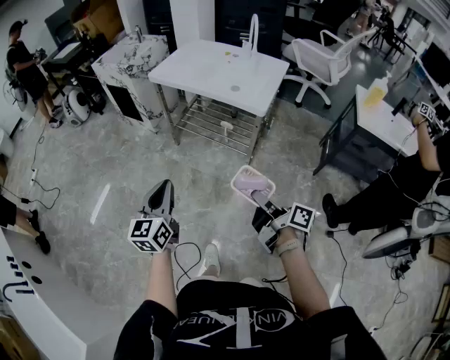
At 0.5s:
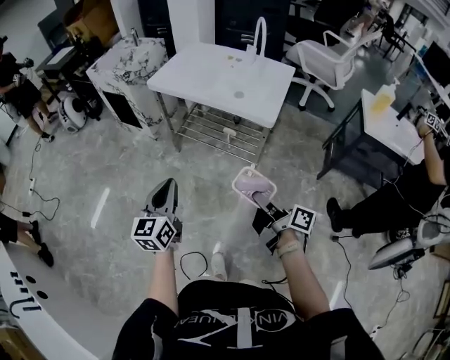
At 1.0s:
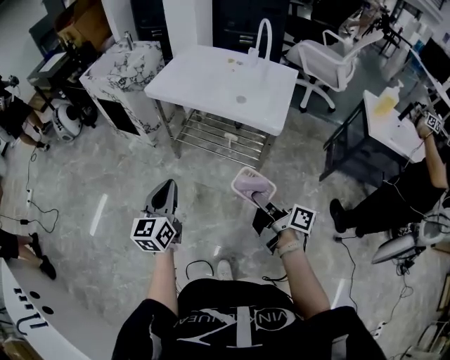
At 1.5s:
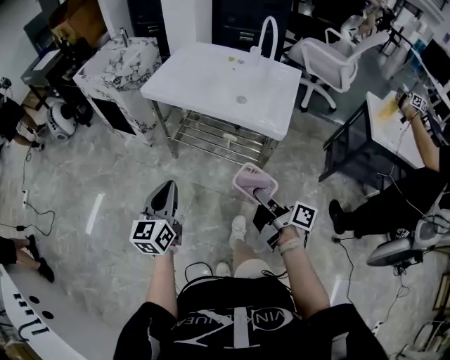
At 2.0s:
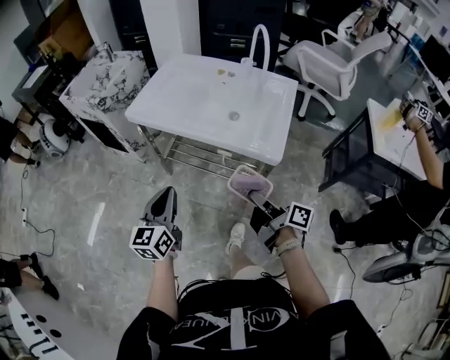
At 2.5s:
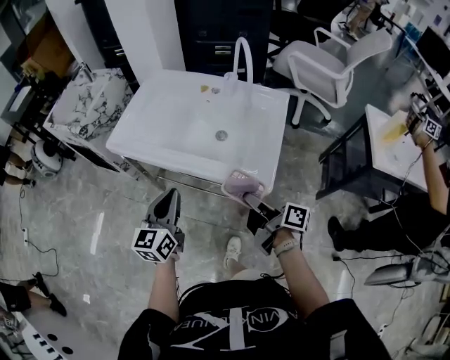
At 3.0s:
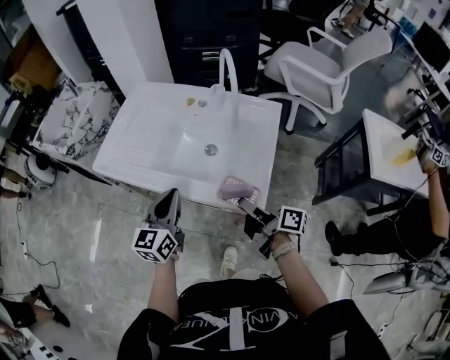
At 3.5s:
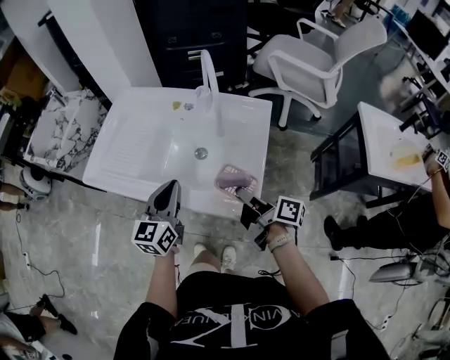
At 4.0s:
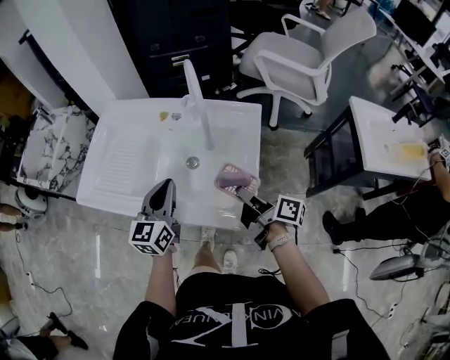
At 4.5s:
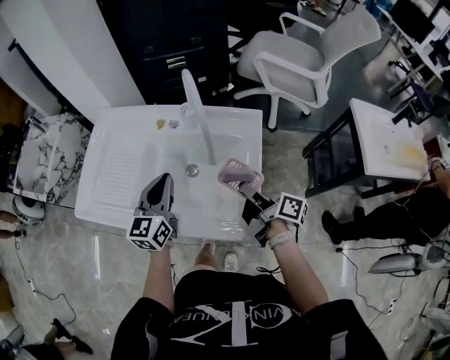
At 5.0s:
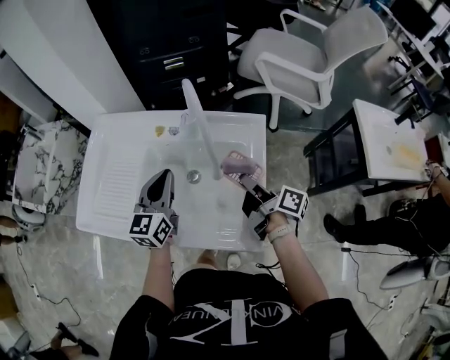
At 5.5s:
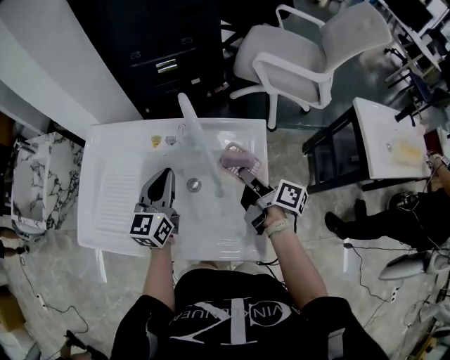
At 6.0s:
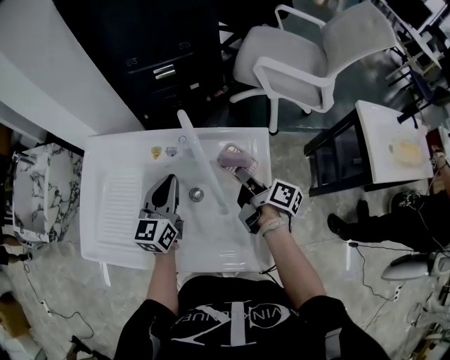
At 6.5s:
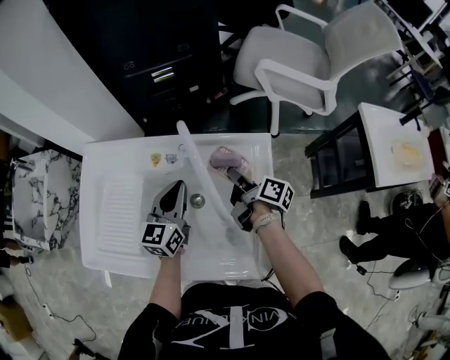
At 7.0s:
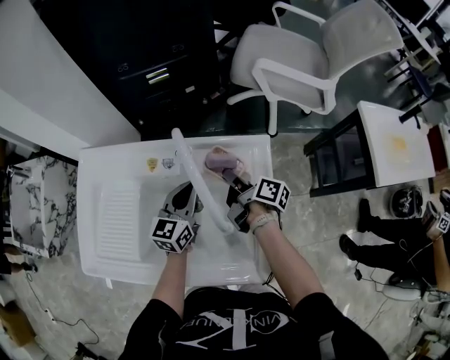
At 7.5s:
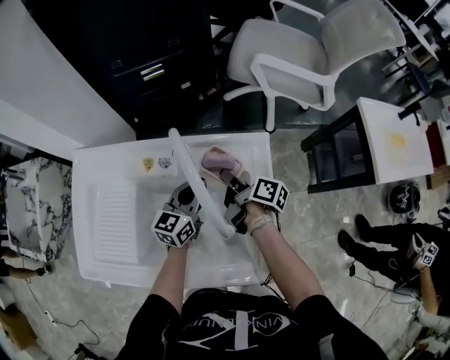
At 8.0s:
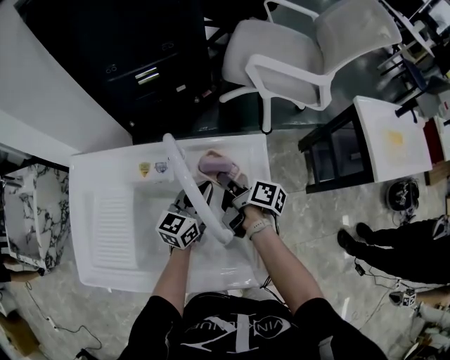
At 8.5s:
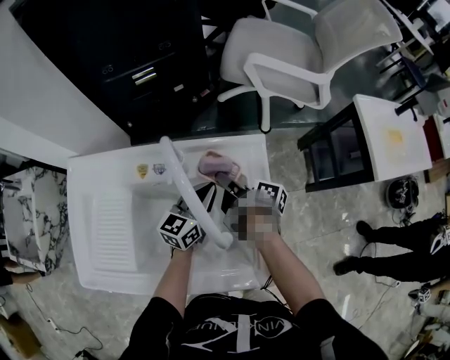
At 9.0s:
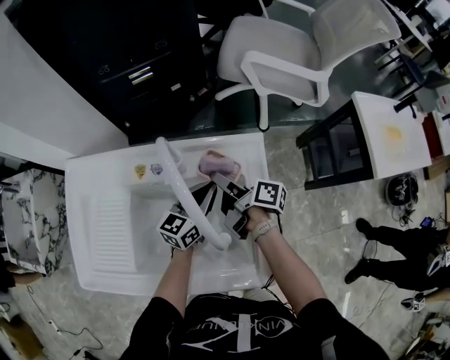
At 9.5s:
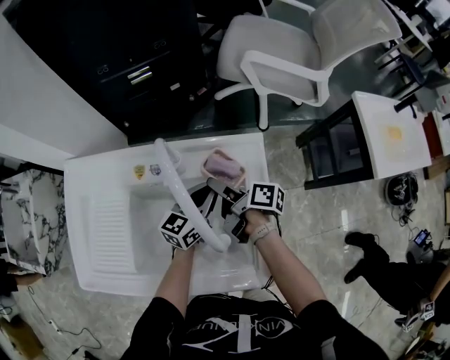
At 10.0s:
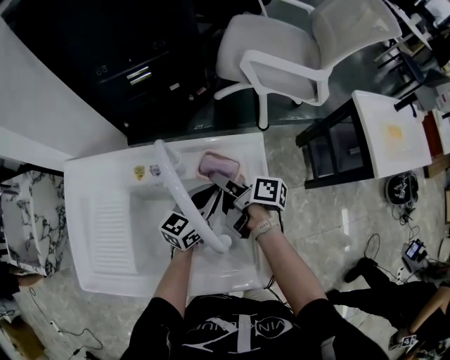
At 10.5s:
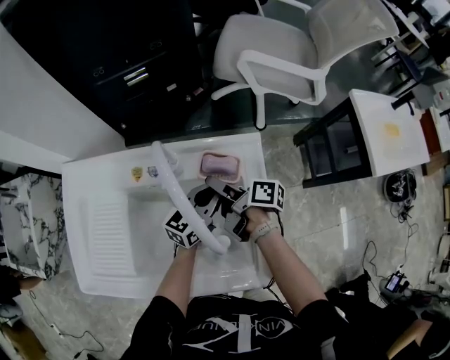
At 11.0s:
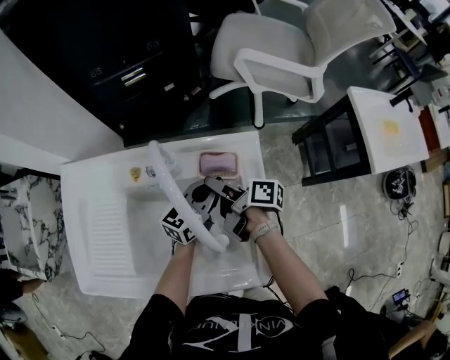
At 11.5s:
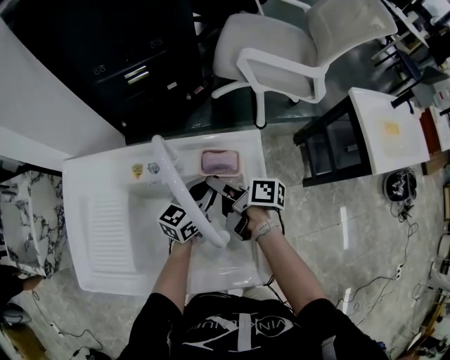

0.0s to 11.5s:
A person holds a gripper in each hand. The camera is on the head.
0.0s to 2.0s: The left gripper changes place by approximately 30 cm.
2.0s to 4.0s: The left gripper moves approximately 35 cm.
4.0s to 6.0s: The left gripper shifts by approximately 20 cm.
6.0s to 7.5s: The left gripper goes about 10 cm downward.
7.5s to 9.5s: The left gripper changes place by roughly 5 cm.

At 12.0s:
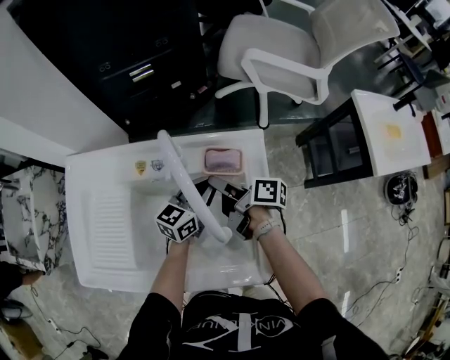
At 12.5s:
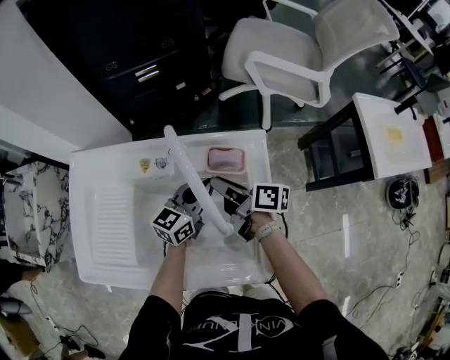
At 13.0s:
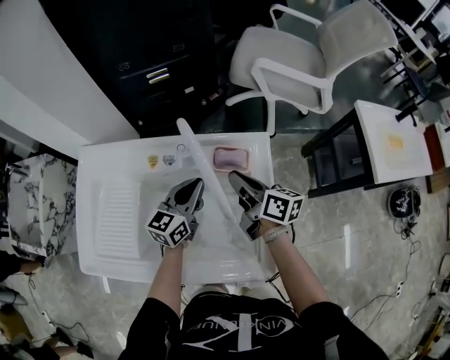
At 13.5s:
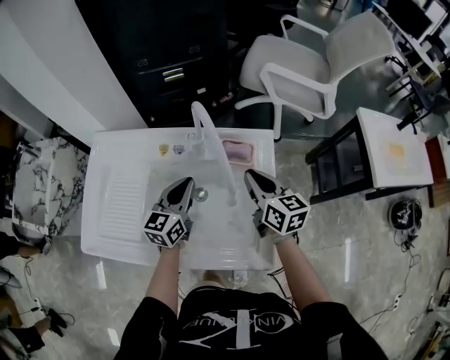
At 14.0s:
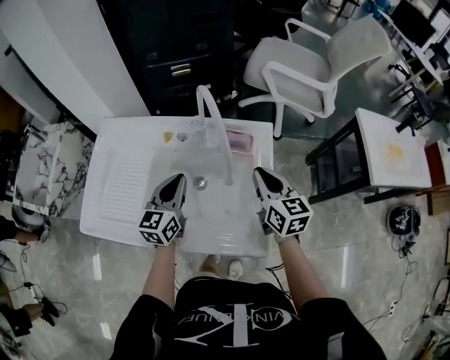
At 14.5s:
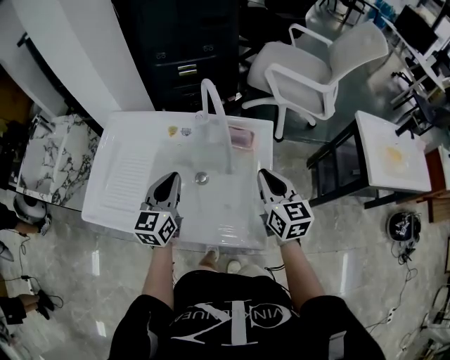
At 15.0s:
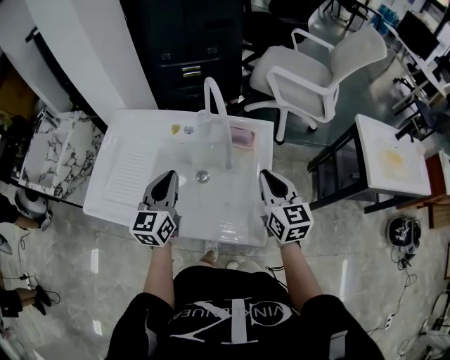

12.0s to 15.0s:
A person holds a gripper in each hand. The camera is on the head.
12.0s to 13.5s: The left gripper moves about 15 cm, and swivels about 20 degrees.
13.5s to 15.0s: The left gripper moves some 15 cm.

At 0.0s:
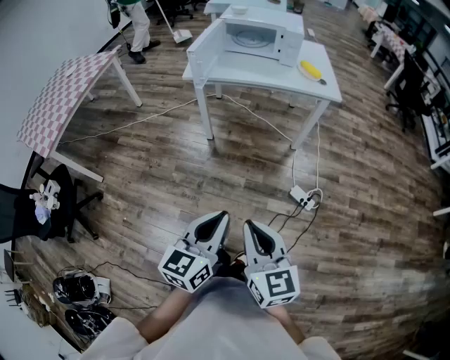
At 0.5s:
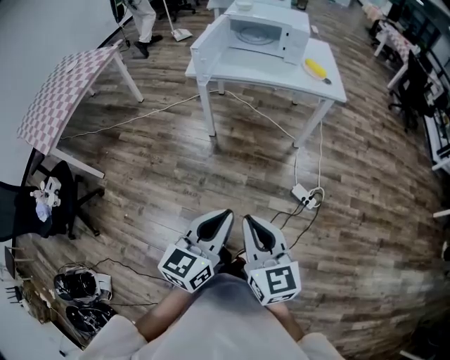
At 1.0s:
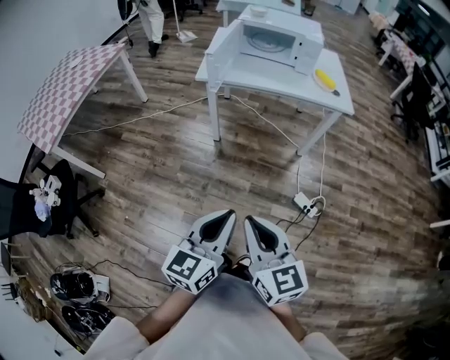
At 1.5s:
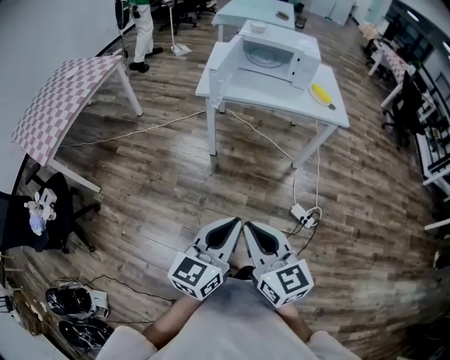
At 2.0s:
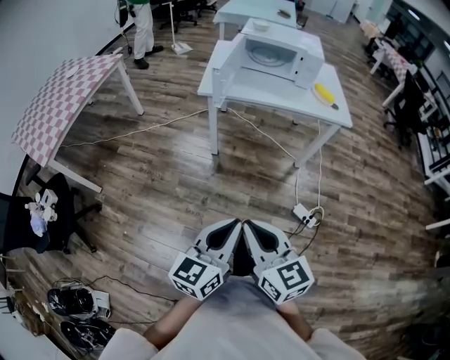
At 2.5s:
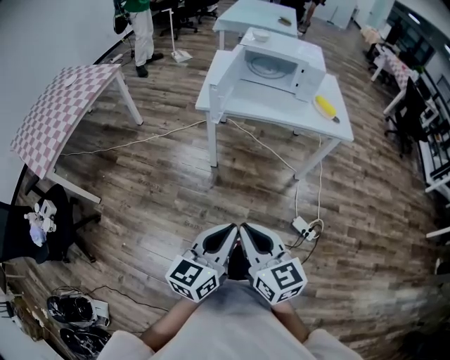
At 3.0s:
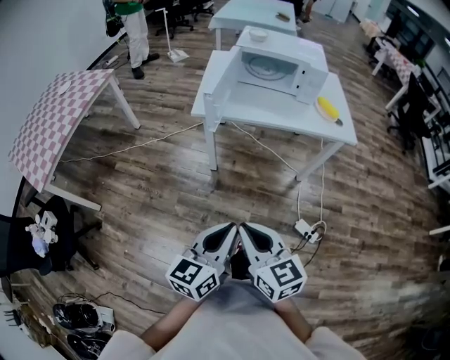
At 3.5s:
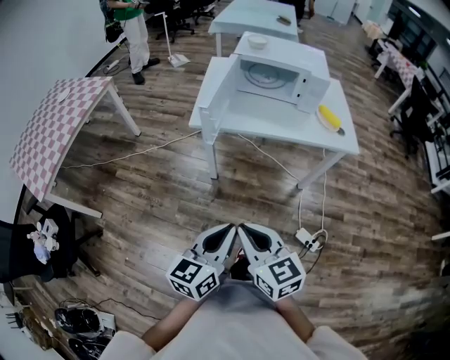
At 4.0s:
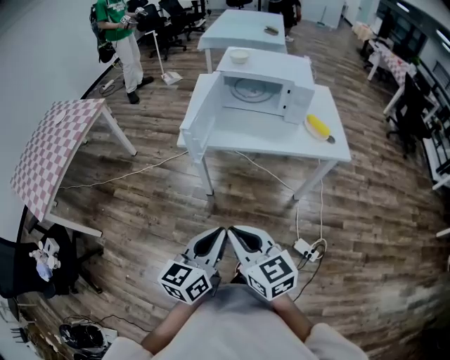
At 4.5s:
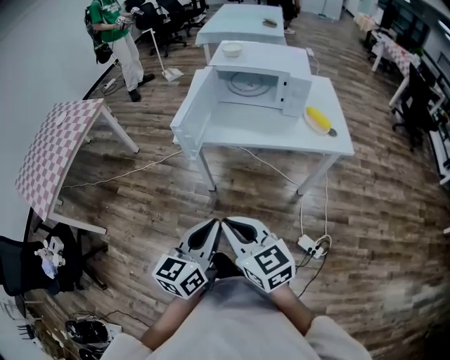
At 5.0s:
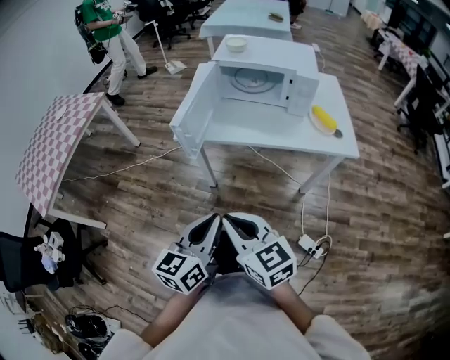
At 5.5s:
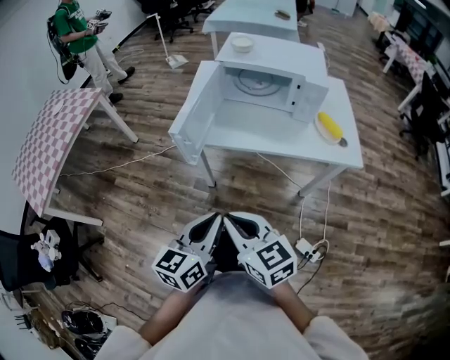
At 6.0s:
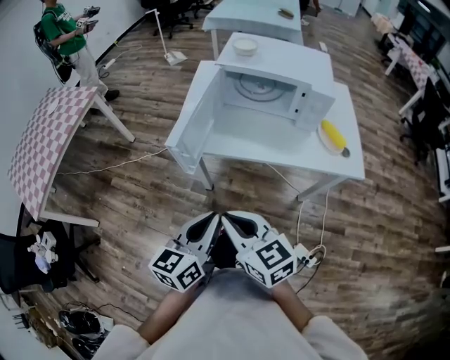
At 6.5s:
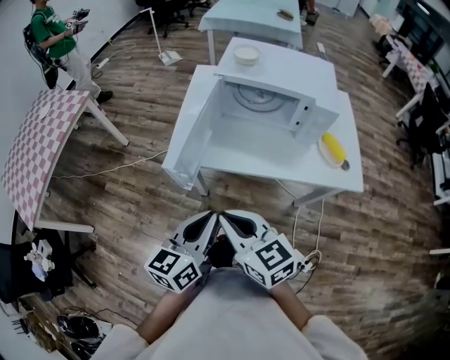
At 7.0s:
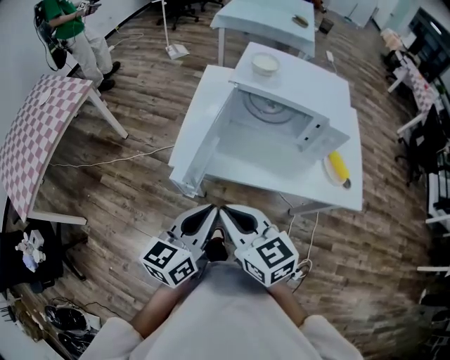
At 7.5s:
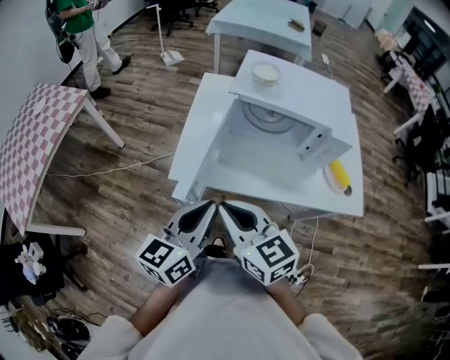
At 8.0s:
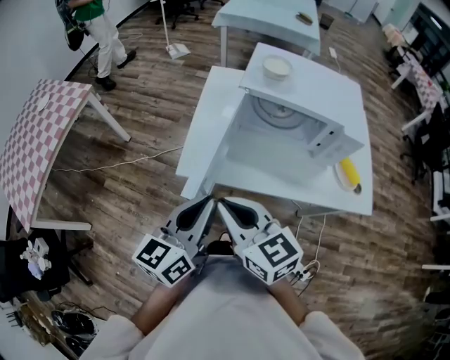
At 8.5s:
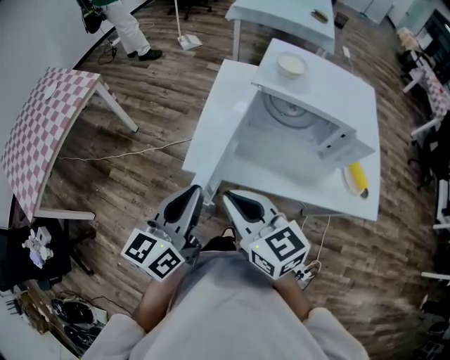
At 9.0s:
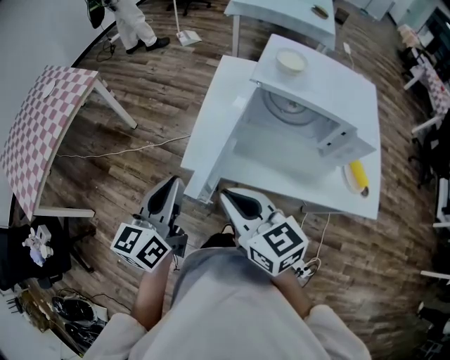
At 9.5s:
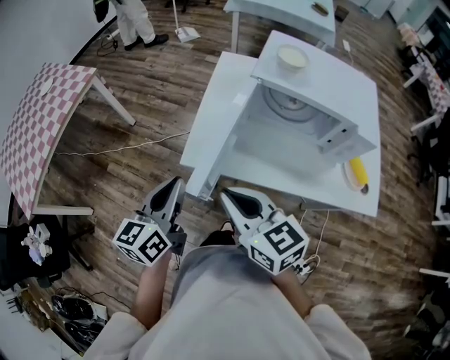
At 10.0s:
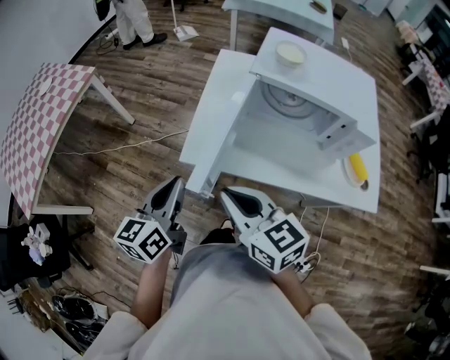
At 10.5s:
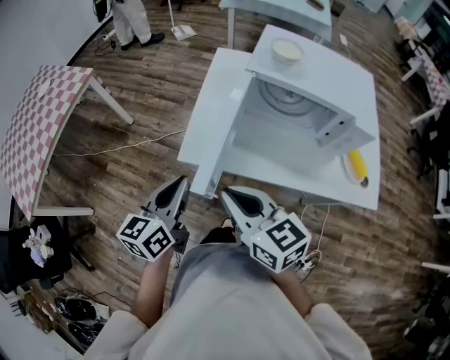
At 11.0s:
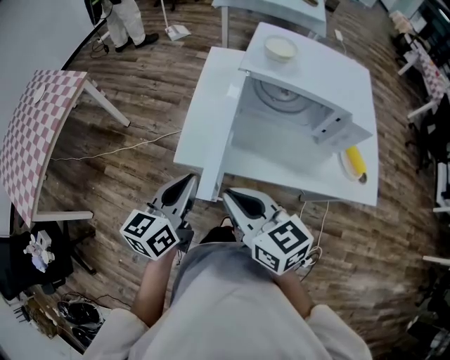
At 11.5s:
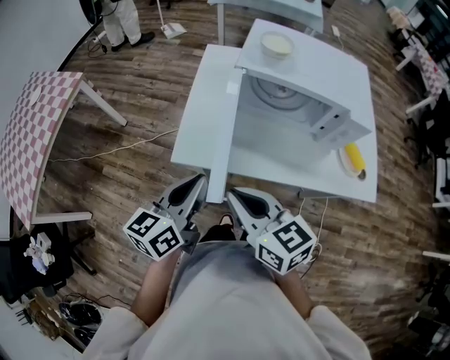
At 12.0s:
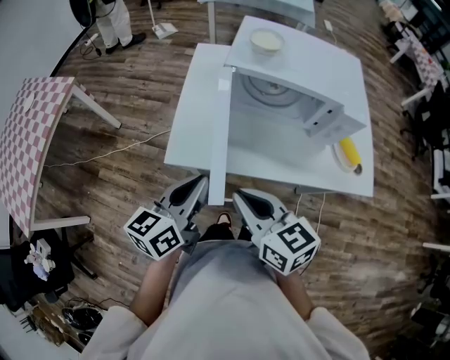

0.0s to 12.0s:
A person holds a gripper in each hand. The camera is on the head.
0.0s to 2.0s: Both grippers move to the left and forward, some 10 cm.
2.0s to 4.0s: The two grippers go approximately 20 cm forward.
4.0s to 6.0s: The grippers both shift forward by approximately 15 cm.
6.0s to 8.0s: The two grippers go some 20 cm forward.
8.0s to 10.0s: The left gripper moves to the left, downward and forward, roughly 10 cm.
10.0s to 12.0s: The right gripper heads to the right, covering approximately 5 cm, while the left gripper heads to the right, covering some 10 cm.

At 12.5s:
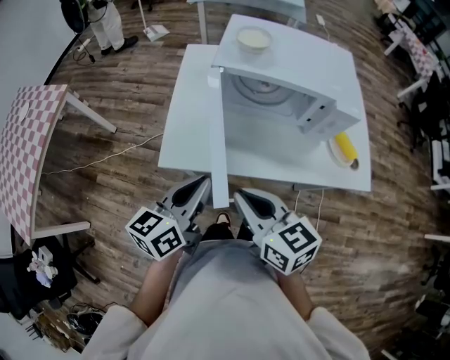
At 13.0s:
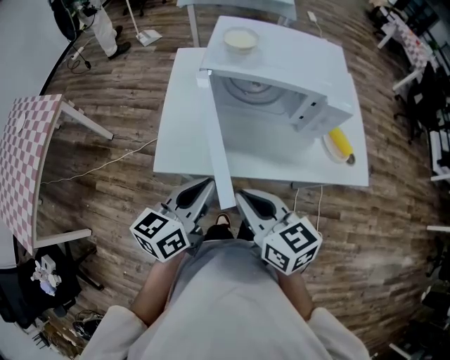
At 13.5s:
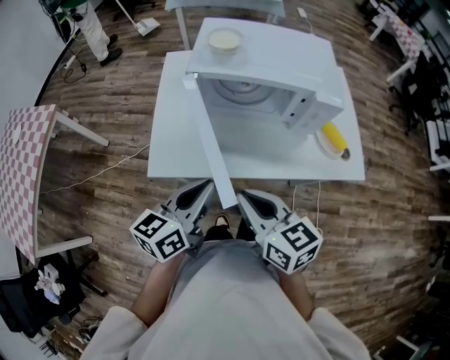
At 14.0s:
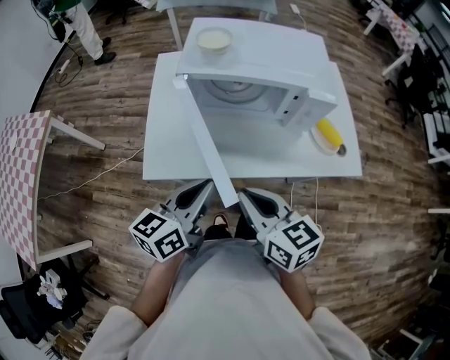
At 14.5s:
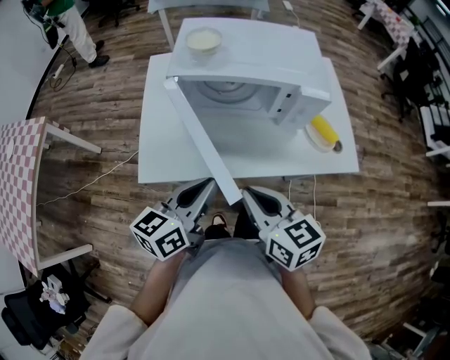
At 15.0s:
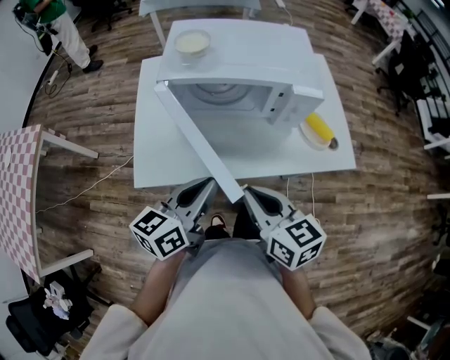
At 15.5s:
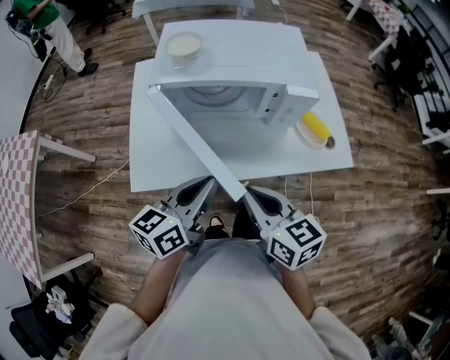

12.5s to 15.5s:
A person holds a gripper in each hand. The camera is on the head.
12.5s to 14.0s: Both grippers travel together to the right, roughly 5 cm.
14.0s to 15.5s: The right gripper heads to the right, covering roughly 5 cm. Meanwhile the left gripper ends up some 5 cm from where it was.
